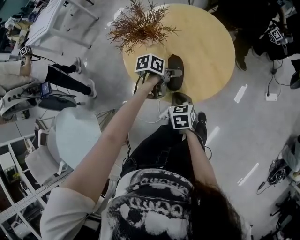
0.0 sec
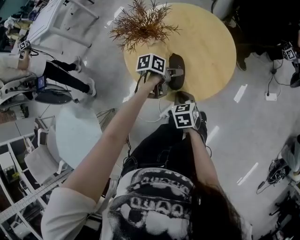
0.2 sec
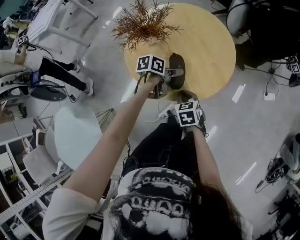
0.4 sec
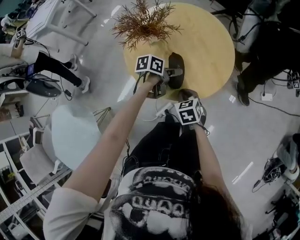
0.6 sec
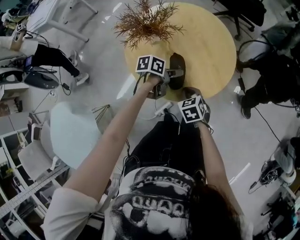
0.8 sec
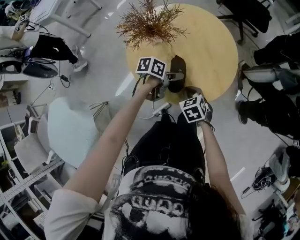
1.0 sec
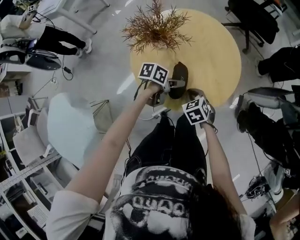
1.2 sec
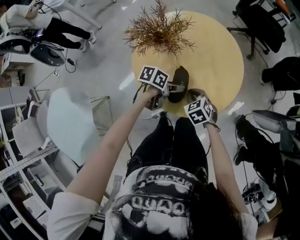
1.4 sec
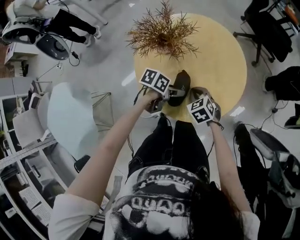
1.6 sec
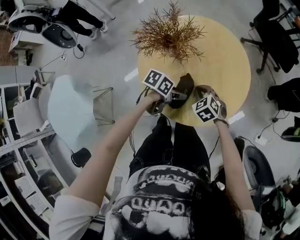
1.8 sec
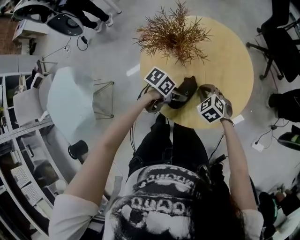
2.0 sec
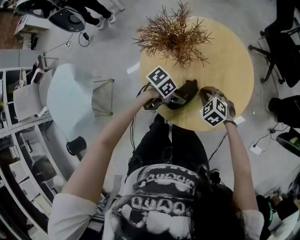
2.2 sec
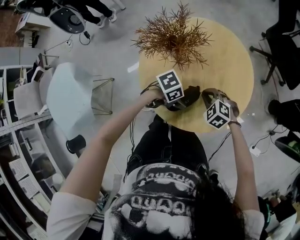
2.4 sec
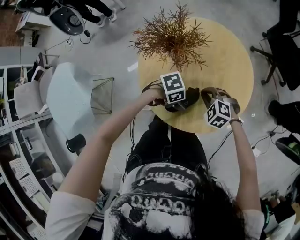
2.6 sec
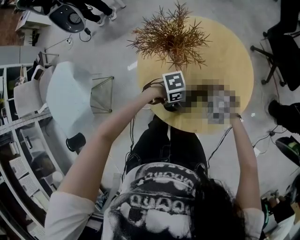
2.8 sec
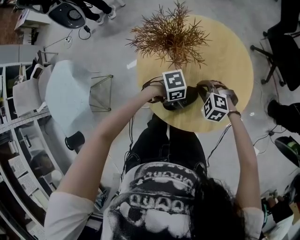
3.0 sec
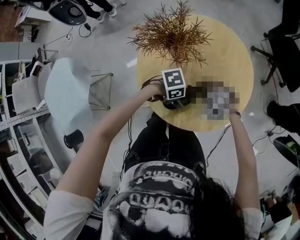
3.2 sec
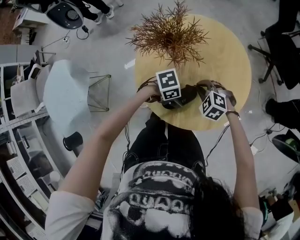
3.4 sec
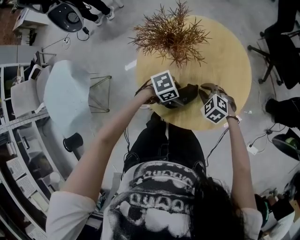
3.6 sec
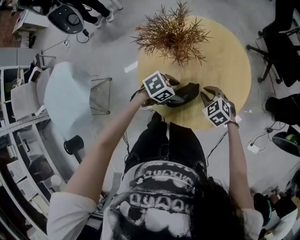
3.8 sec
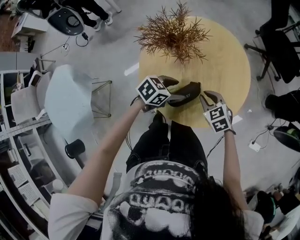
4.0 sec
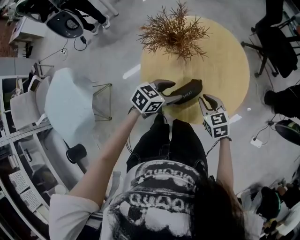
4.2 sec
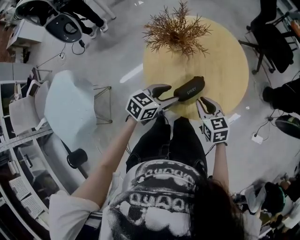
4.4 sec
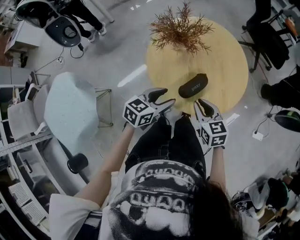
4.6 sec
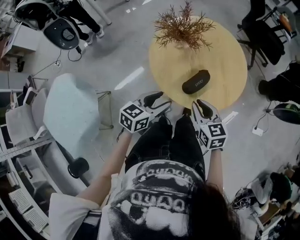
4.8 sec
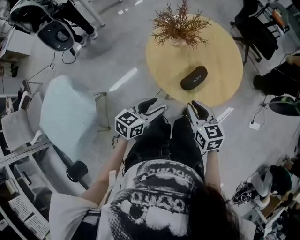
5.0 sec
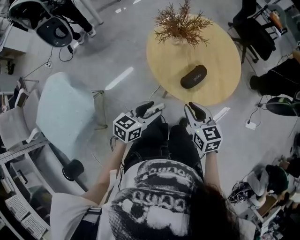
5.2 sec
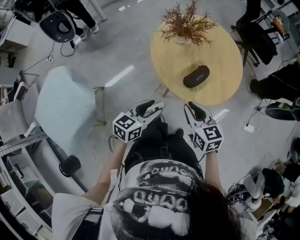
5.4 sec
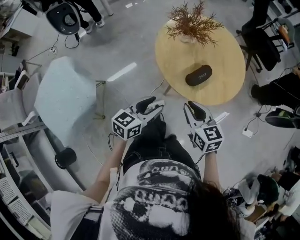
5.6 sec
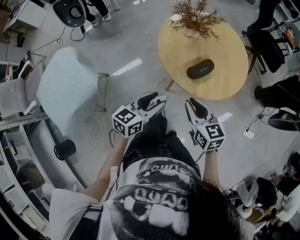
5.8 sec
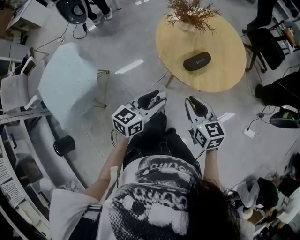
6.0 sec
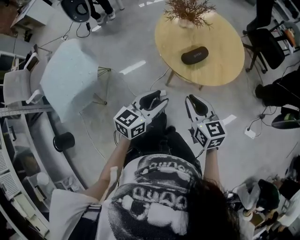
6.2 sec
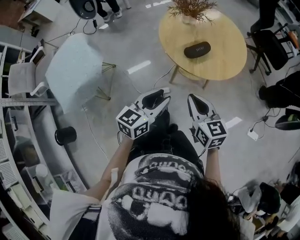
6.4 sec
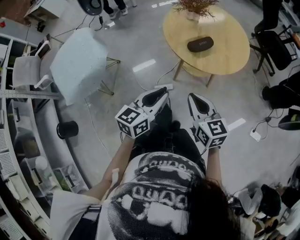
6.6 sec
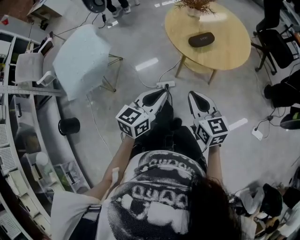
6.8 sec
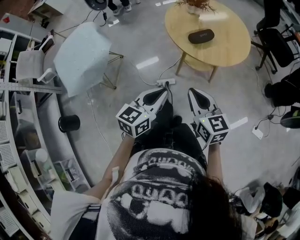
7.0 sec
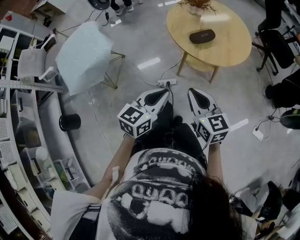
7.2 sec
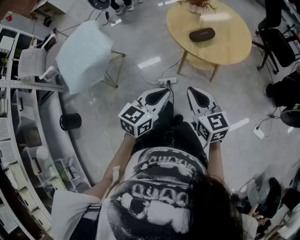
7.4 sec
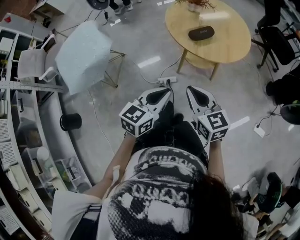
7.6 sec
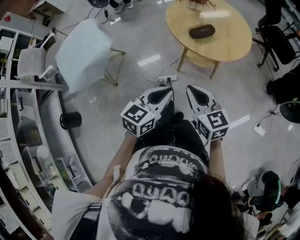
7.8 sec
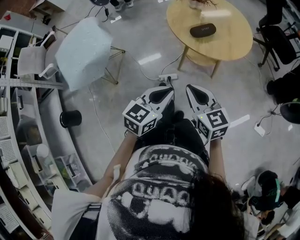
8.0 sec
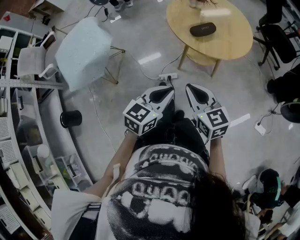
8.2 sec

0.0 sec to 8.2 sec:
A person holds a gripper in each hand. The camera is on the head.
0.0 sec to 1.6 sec: The right gripper shifts about 10 cm forward, and rolls counterclockwise, seen from behind, by approximately 40 degrees.
1.6 sec to 3.2 sec: The left gripper rotates roughly 40 degrees, while the right gripper changes place by about 5 cm, and rolls counterclockwise, seen from behind, by approximately 50 degrees.
3.2 sec to 5.0 sec: The right gripper ends up some 25 cm from where it was, and rolls clockwise, seen from behind, by roughly 70 degrees. The left gripper ends up roughly 25 cm from where it was, and changes its angle by roughly 60 degrees.
5.0 sec to 6.6 sec: The right gripper shifts roughly 20 cm backward. Meanwhile the left gripper shifts roughly 25 cm backward and upward, swivels about 30 degrees, and closes its fingers.
6.6 sec to 8.2 sec: The grippers both shift backward by approximately 5 cm.

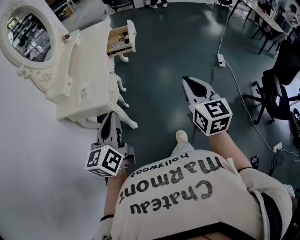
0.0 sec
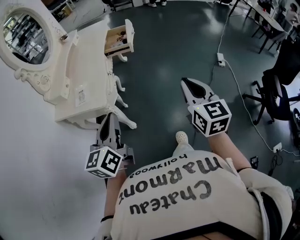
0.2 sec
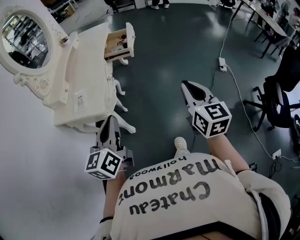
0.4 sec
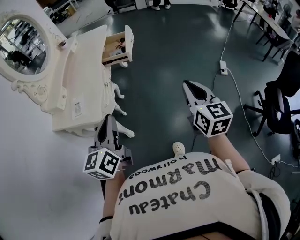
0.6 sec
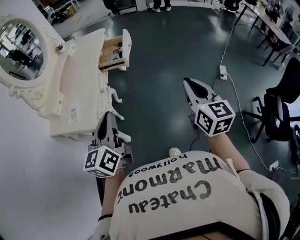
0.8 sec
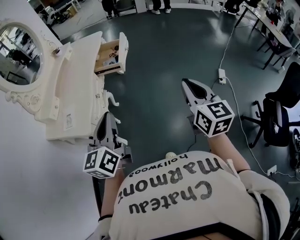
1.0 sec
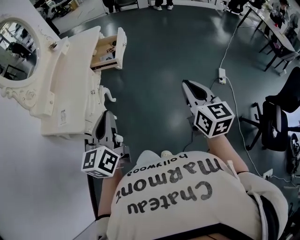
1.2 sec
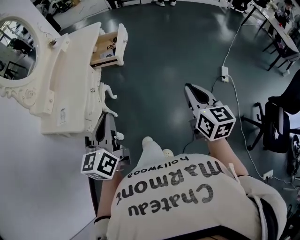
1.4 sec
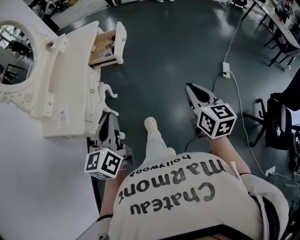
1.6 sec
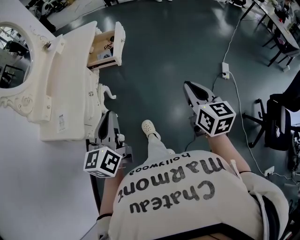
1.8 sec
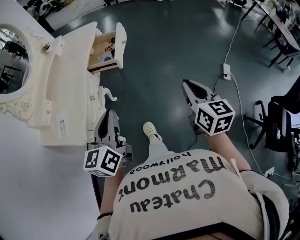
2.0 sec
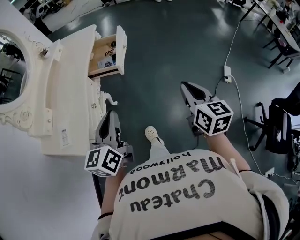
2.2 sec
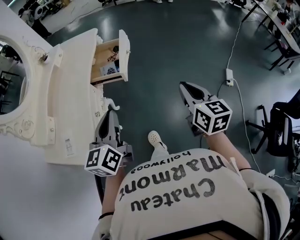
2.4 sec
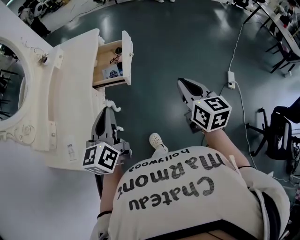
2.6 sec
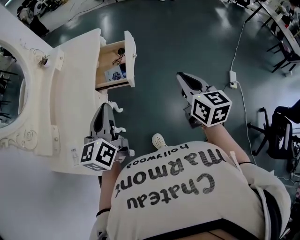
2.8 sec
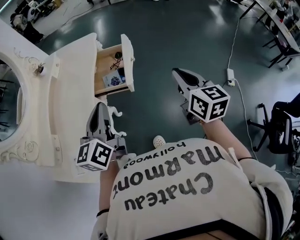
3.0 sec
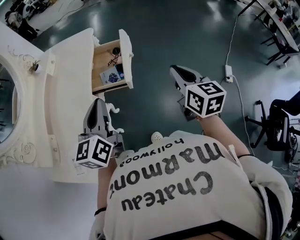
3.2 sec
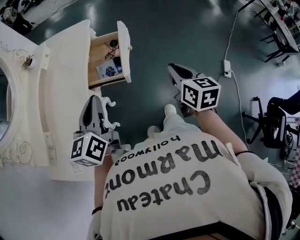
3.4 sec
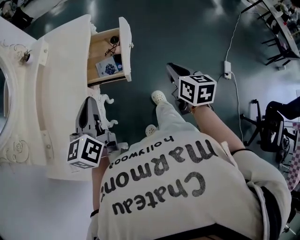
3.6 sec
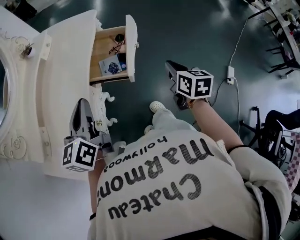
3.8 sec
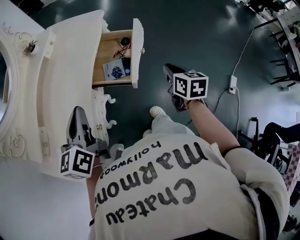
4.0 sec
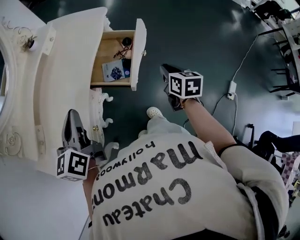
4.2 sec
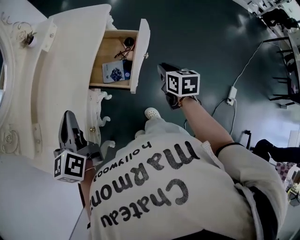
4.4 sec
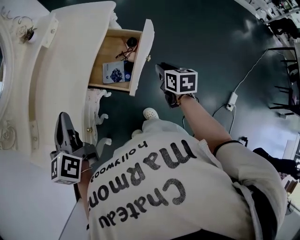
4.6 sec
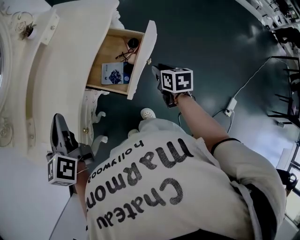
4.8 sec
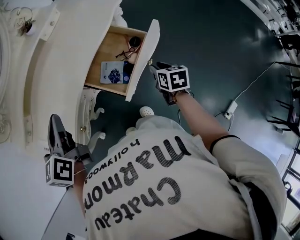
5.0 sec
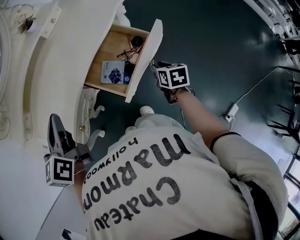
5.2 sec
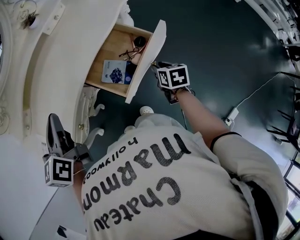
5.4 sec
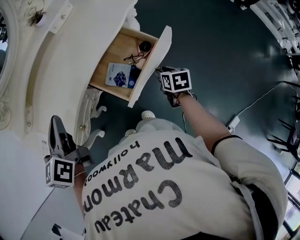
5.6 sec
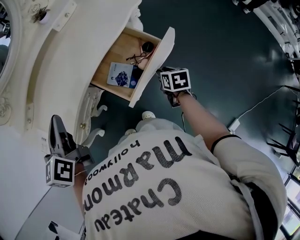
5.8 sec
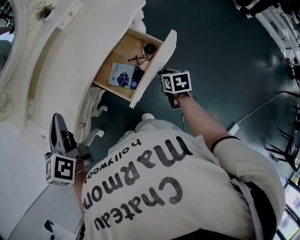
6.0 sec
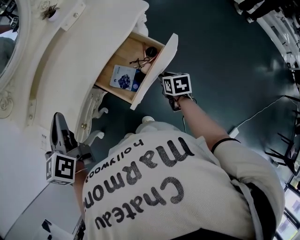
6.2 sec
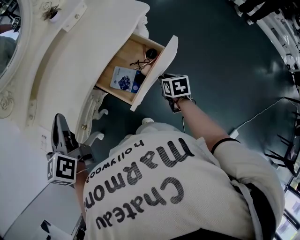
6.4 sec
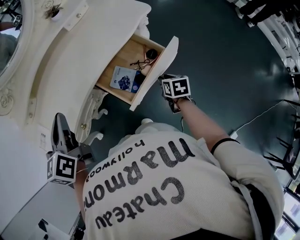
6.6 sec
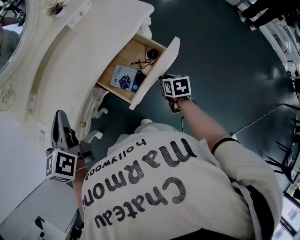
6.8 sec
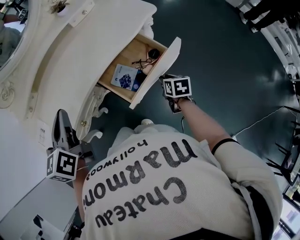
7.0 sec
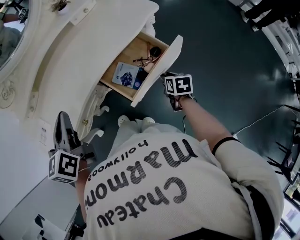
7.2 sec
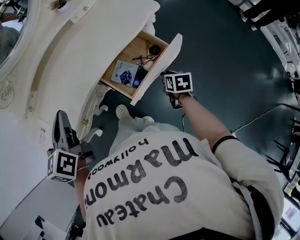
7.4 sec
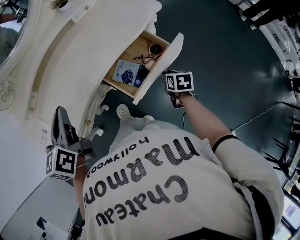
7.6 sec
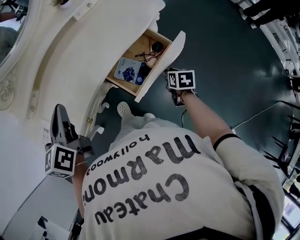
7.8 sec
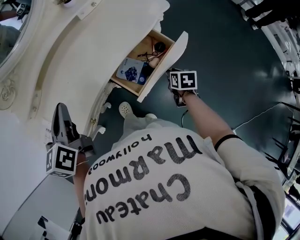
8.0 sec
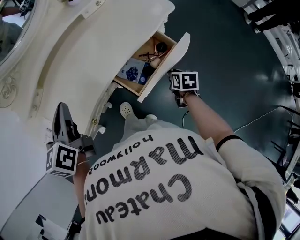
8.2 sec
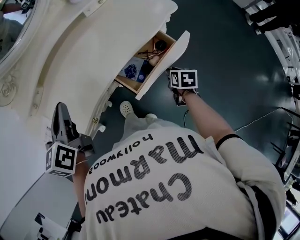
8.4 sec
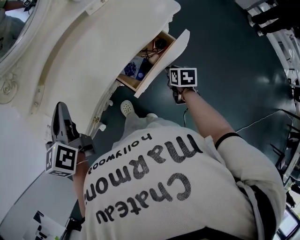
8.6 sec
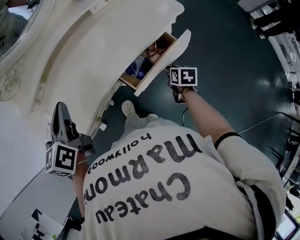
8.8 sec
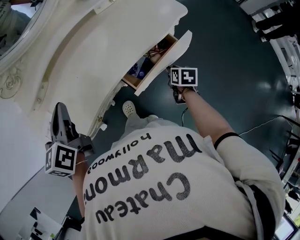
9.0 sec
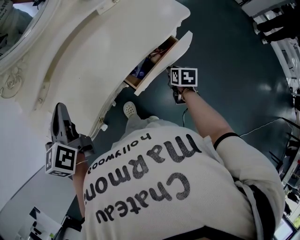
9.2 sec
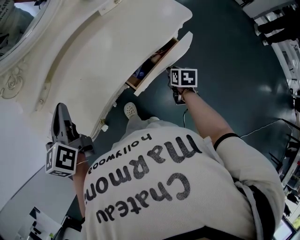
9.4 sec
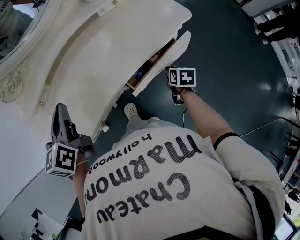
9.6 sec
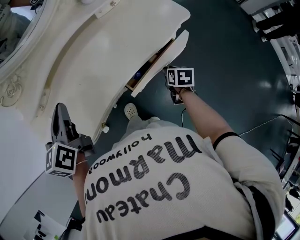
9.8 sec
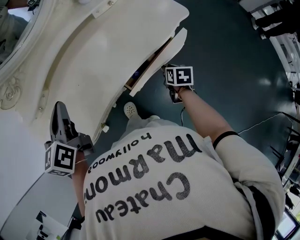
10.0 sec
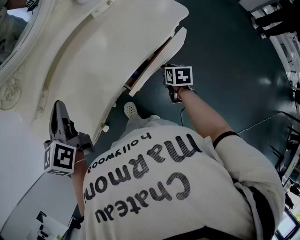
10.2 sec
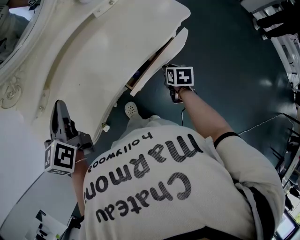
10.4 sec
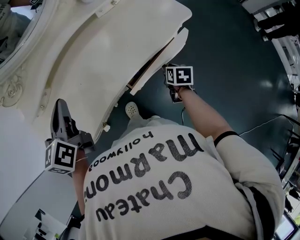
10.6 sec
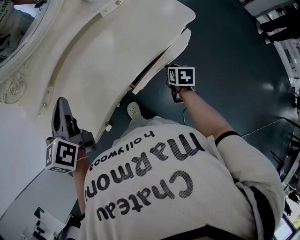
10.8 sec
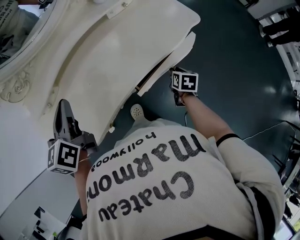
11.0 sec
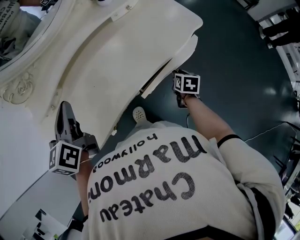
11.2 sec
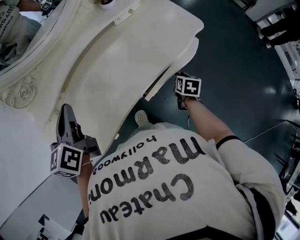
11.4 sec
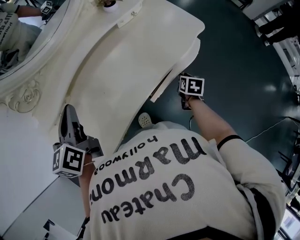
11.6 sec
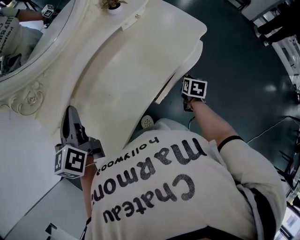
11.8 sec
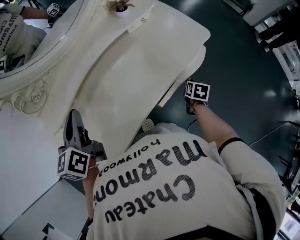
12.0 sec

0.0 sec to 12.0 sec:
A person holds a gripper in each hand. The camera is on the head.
0.0 sec to 1.6 sec: The grippers both shift forward and to the right by roughly 25 cm.
1.6 sec to 3.0 sec: The two grippers go some 30 cm forward.
3.0 sec to 4.4 sec: The right gripper travels forward and downward by some 30 cm, and swivels approximately 30 degrees. Meanwhile the left gripper moves to the left, forward and downward, about 15 cm, and rotates approximately 30 degrees.
4.4 sec to 6.0 sec: The left gripper swivels approximately 30 degrees. Meanwhile the right gripper shifts roughly 10 cm downward, and turns by some 30 degrees.
6.0 sec to 7.6 sec: The grippers stay close to where they were, moving slightly.
7.6 sec to 9.0 sec: The right gripper travels forward by roughly 5 cm. The left gripper travels to the left by approximately 5 cm.
9.0 sec to 10.4 sec: There are only small adjustments of the grippers.
10.4 sec to 12.0 sec: The left gripper is displaced to the left by roughly 10 cm.

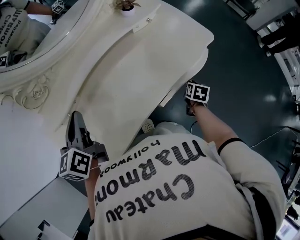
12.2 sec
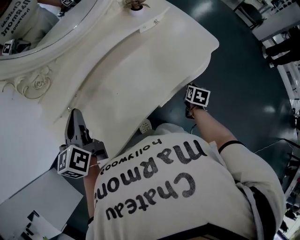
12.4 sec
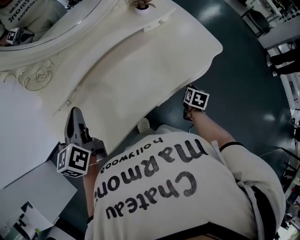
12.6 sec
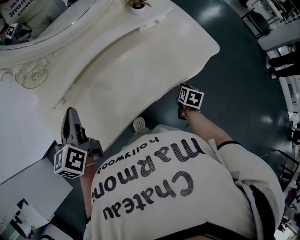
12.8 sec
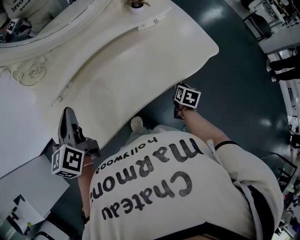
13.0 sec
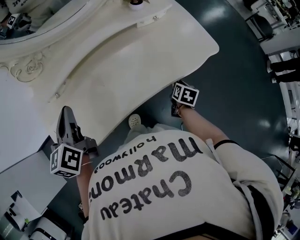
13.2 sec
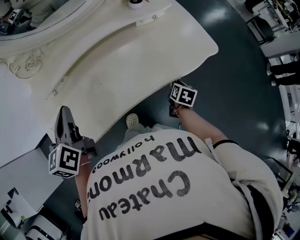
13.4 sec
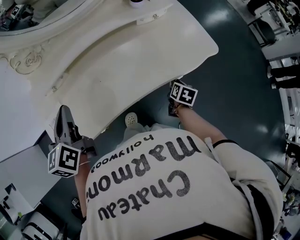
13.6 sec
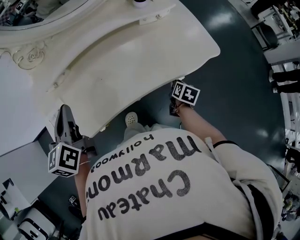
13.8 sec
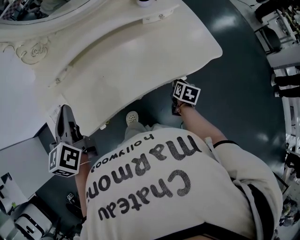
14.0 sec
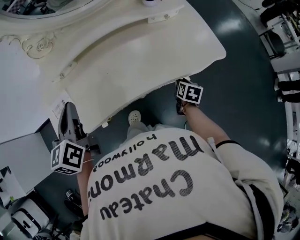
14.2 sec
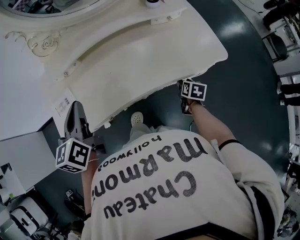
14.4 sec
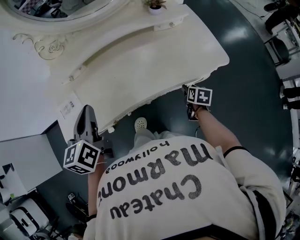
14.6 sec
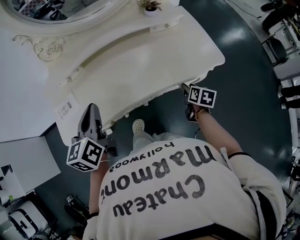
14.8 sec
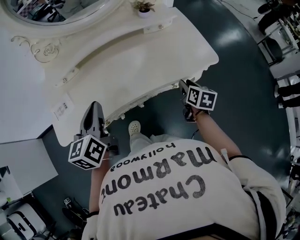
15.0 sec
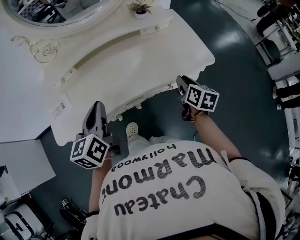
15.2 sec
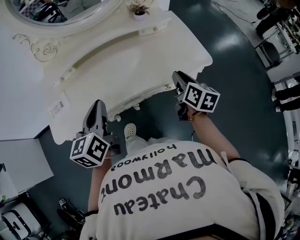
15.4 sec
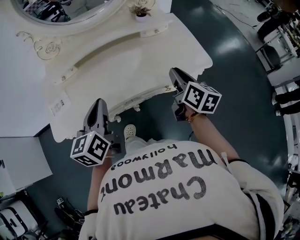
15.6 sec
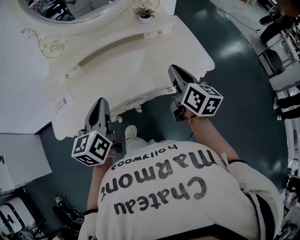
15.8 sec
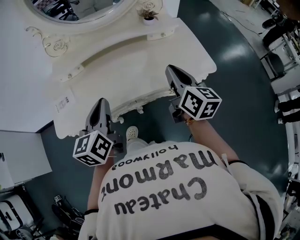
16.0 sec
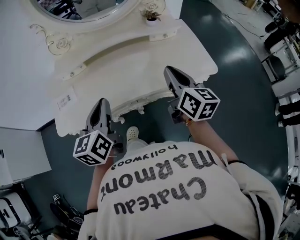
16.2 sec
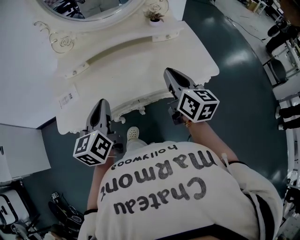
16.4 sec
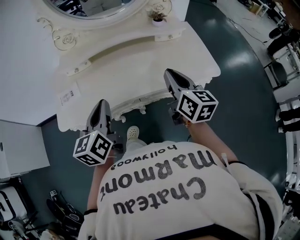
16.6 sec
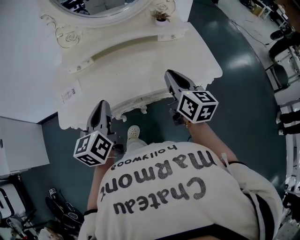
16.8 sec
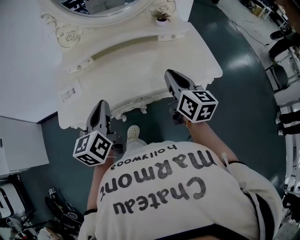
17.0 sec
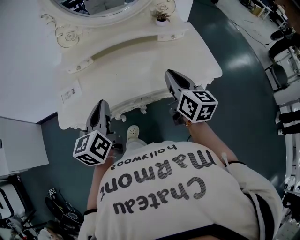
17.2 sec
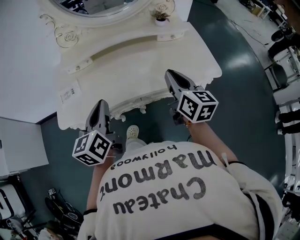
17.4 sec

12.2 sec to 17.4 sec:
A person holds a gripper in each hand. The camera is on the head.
12.2 sec to 14.0 sec: The right gripper moves approximately 5 cm, while the left gripper heads backward, covering approximately 10 cm, and rotates approximately 20 degrees.
14.0 sec to 15.6 sec: The left gripper moves to the right and backward, some 15 cm. Meanwhile the right gripper goes about 25 cm upward, tilts its fingers about 30 degrees upward, and opens, then closes once more.
15.6 sec to 17.4 sec: The left gripper ends up roughly 5 cm from where it was. Meanwhile the right gripper moves to the left, approximately 10 cm.
